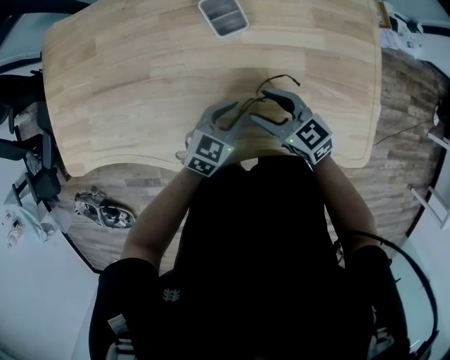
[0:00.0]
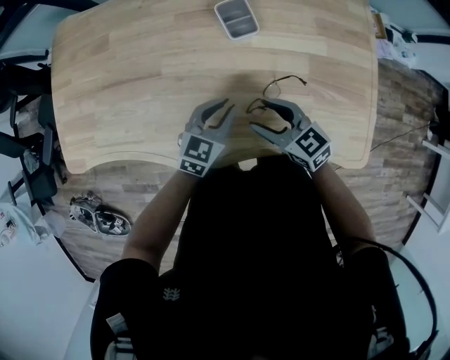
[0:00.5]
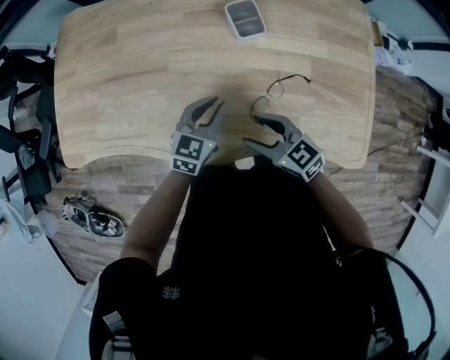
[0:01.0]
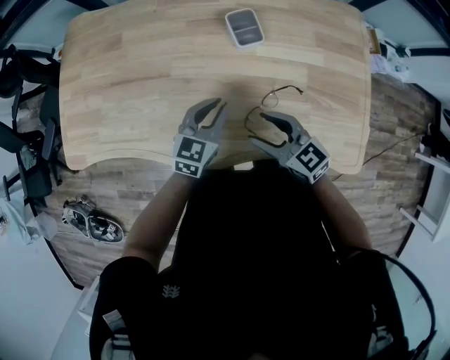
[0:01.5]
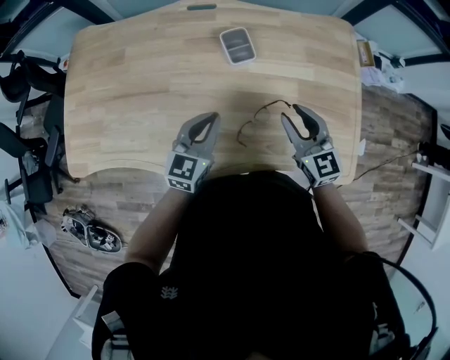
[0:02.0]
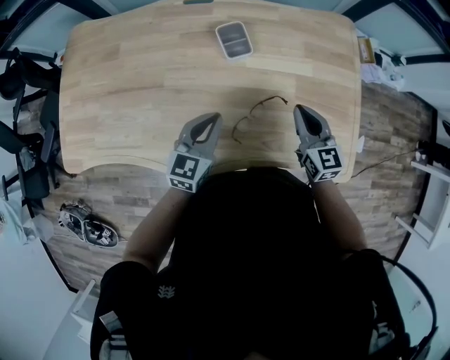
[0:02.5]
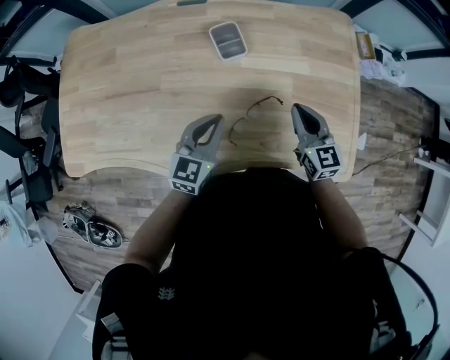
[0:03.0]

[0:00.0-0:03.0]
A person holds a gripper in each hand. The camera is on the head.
0:00.0 to 0:01.5: The right gripper shifts about 10 cm upward, to the left and backward. Meanwhile the left gripper heads to the left and upward, covering approximately 15 cm.
0:01.5 to 0:03.0: The right gripper shifts roughly 20 cm to the right and forward, turns by about 30 degrees, and closes up; the left gripper moves to the right, about 5 cm.

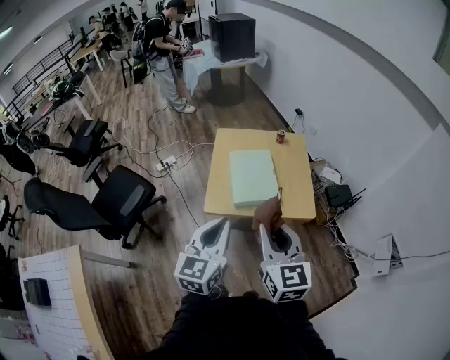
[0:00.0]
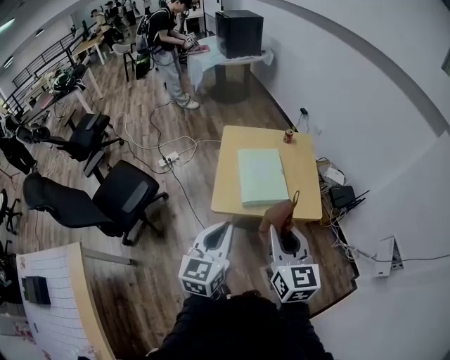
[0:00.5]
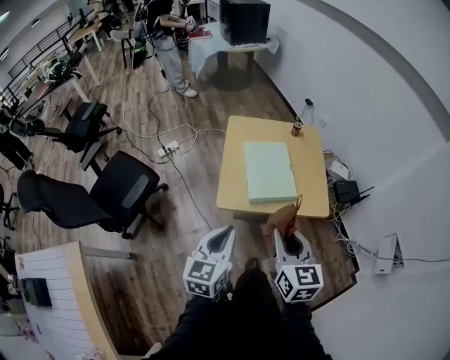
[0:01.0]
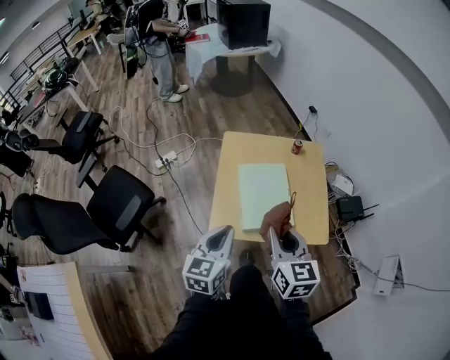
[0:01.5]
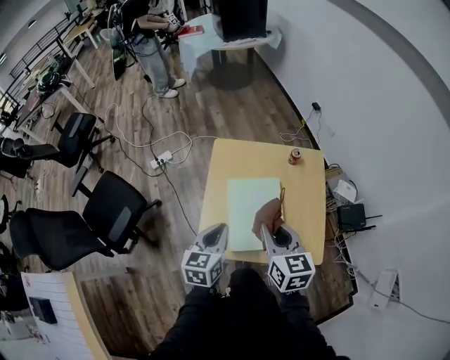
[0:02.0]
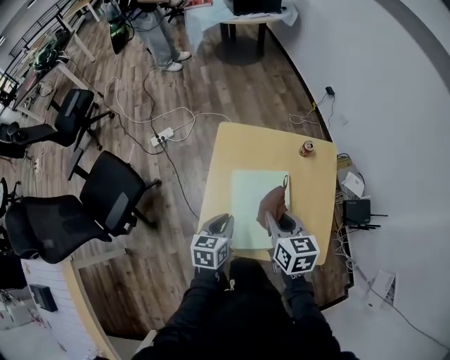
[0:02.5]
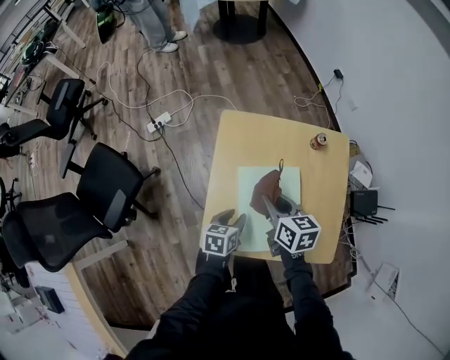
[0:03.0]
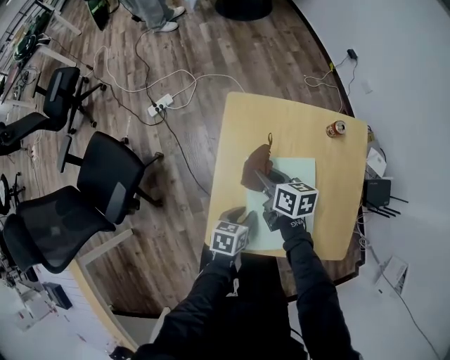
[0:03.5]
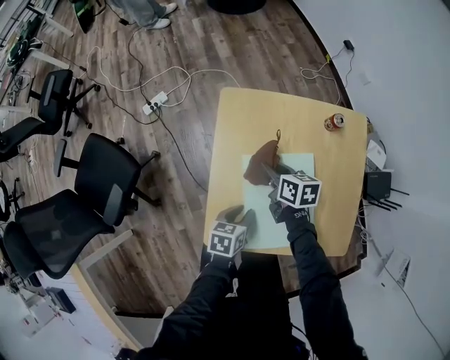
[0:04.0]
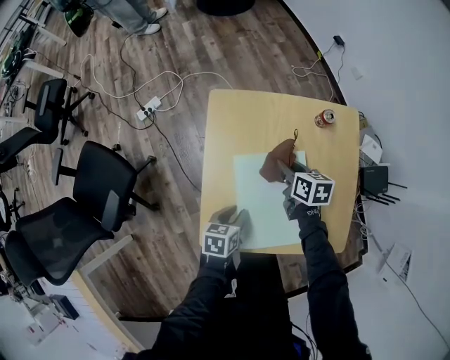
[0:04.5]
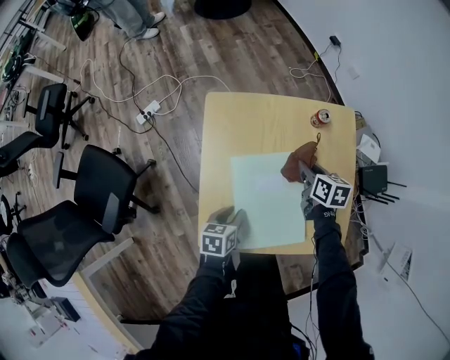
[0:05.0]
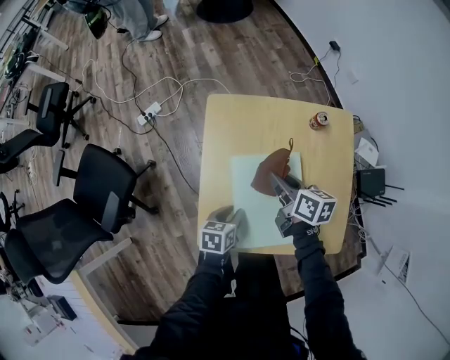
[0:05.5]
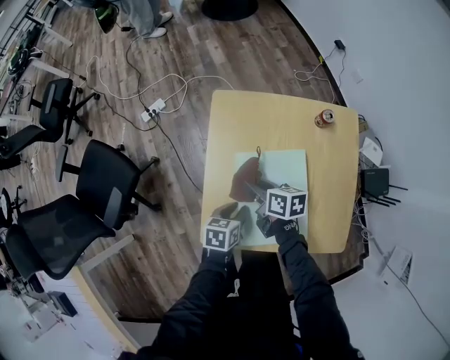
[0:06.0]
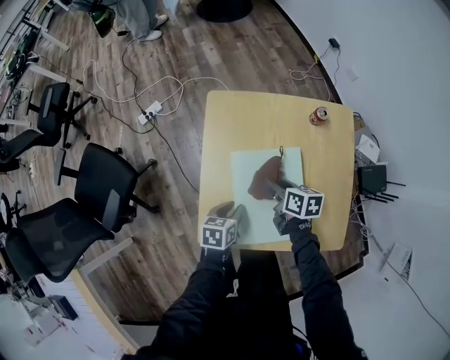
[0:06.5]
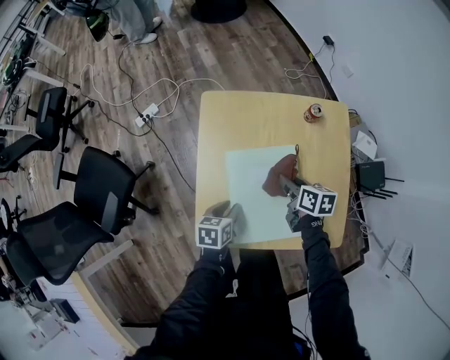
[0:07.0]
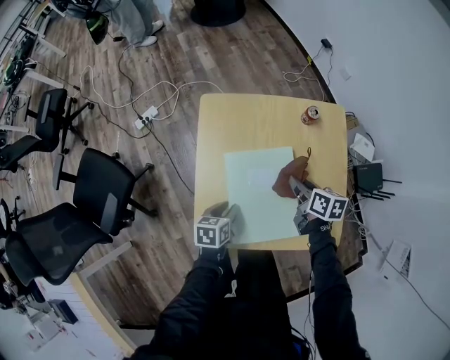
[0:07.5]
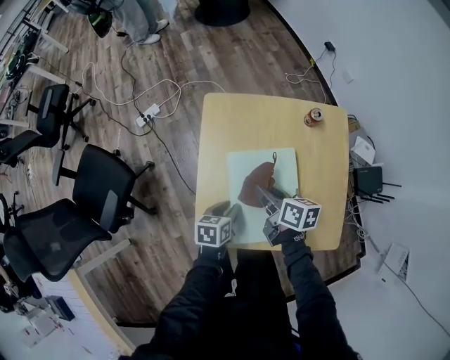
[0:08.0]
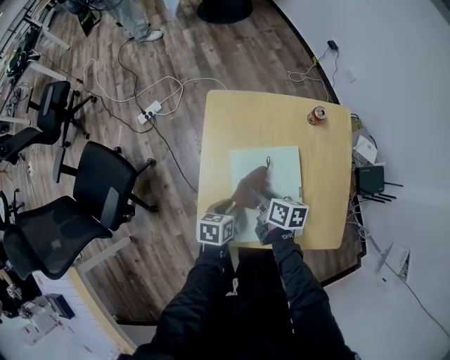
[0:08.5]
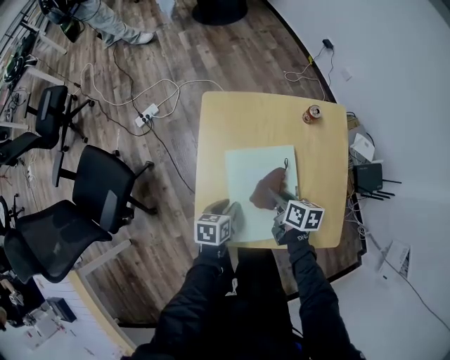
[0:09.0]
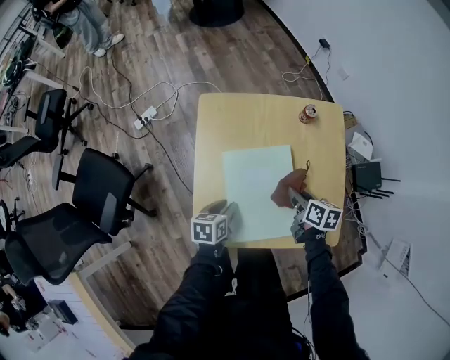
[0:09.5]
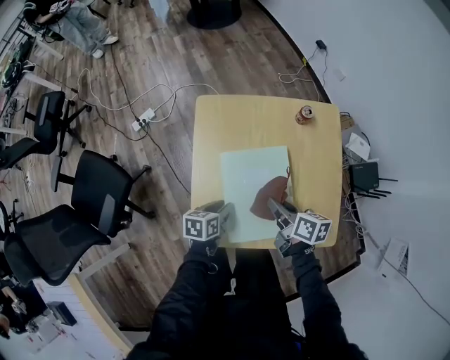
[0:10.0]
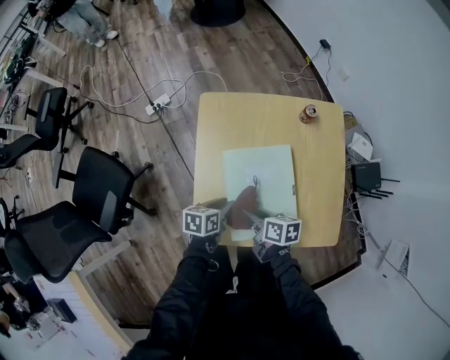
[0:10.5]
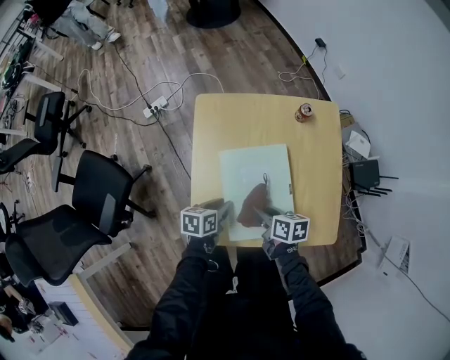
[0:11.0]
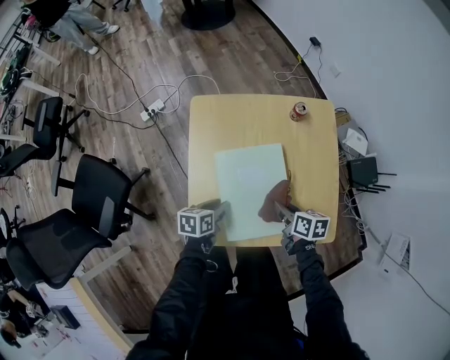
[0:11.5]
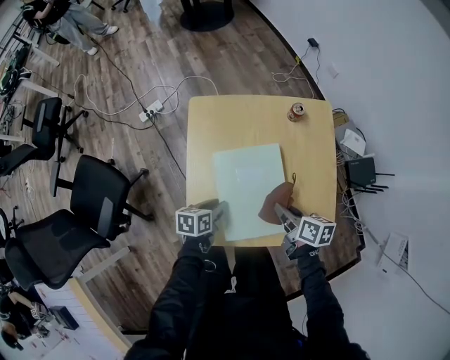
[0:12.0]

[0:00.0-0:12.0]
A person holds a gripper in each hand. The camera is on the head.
0:00.0 to 0:02.0: The two grippers go approximately 35 cm forward and downward. The left gripper rotates approximately 20 degrees.
0:02.0 to 0:04.0: The right gripper shifts roughly 35 cm downward and forward, and rotates about 30 degrees. The left gripper heads downward, covering some 25 cm, changes its angle by some 30 degrees, and opens.
0:04.0 to 0:06.0: The right gripper moves backward, roughly 5 cm, and travels to the right and back again, approximately 15 cm each way.
0:06.0 to 0:08.0: The right gripper reaches some 20 cm to the right, then returns.
0:08.0 to 0:10.0: The right gripper goes roughly 5 cm to the right.
0:10.0 to 0:12.0: The right gripper moves roughly 10 cm to the left and comes back.

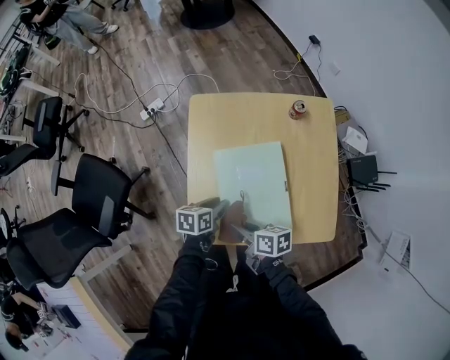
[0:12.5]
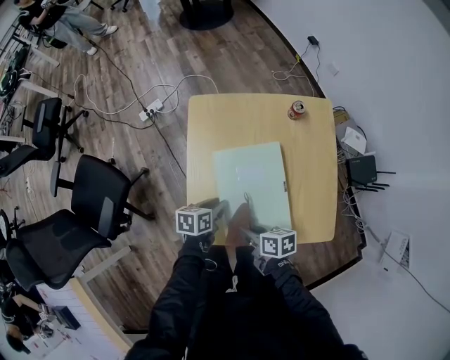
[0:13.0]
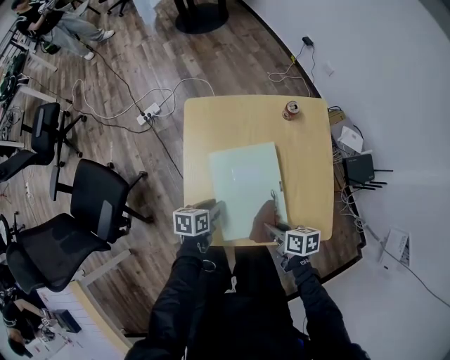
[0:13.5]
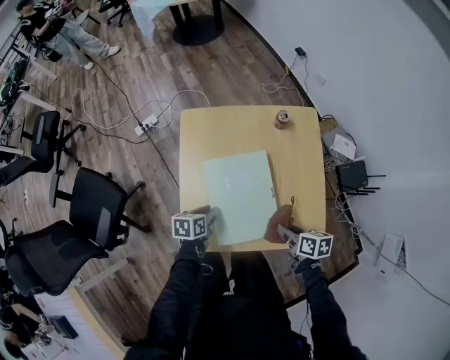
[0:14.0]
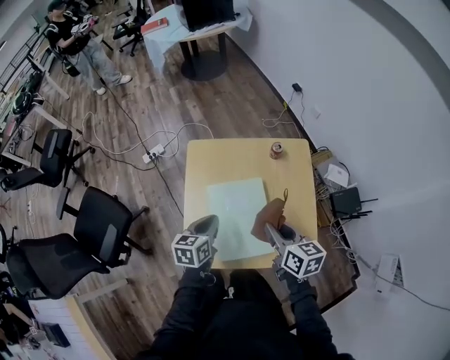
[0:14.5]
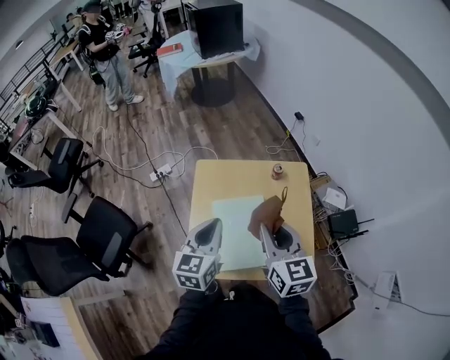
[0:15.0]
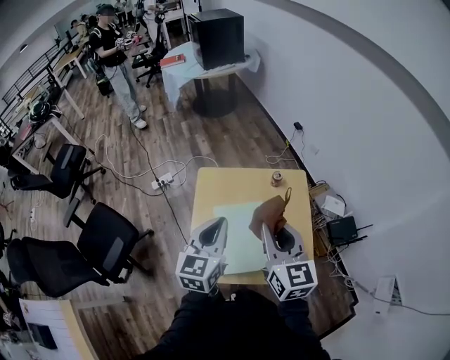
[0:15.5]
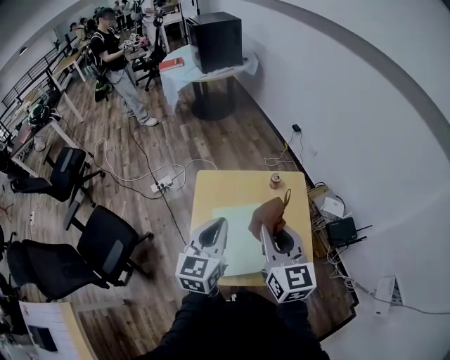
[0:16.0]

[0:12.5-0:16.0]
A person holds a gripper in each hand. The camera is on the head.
0:12.5 to 0:14.5: The right gripper moves upward, to the right and forward, some 25 cm, and swivels roughly 40 degrees, while the left gripper heads upward, covering some 15 cm, and changes its angle by about 20 degrees.
0:14.5 to 0:16.0: Both grippers move upward, about 20 cm. The left gripper rotates roughly 30 degrees, while the right gripper changes its angle by approximately 30 degrees.

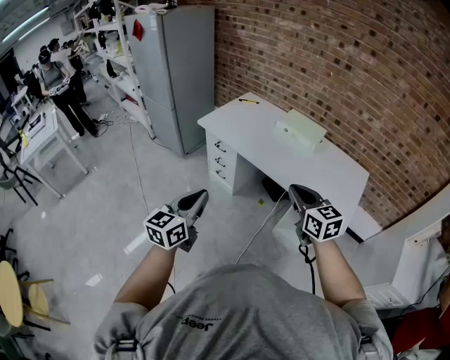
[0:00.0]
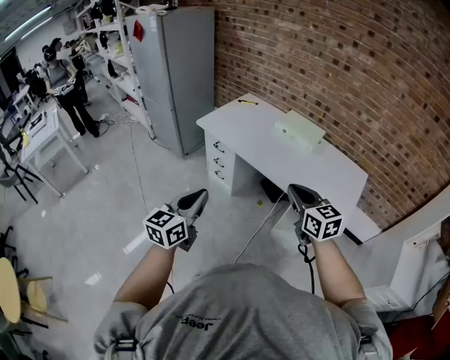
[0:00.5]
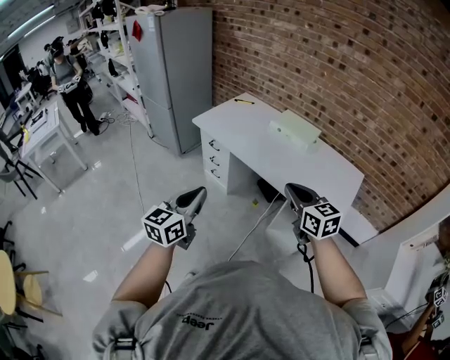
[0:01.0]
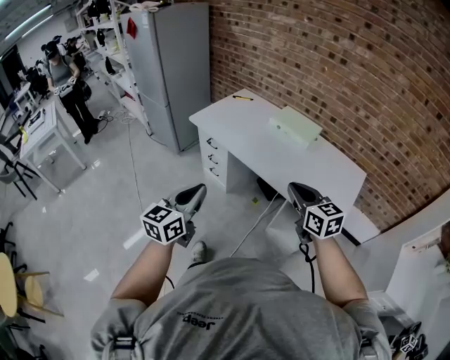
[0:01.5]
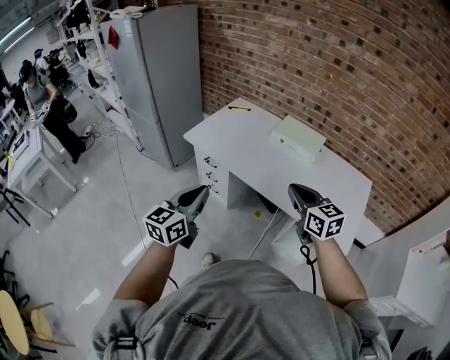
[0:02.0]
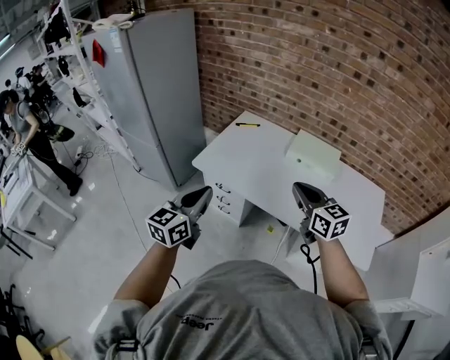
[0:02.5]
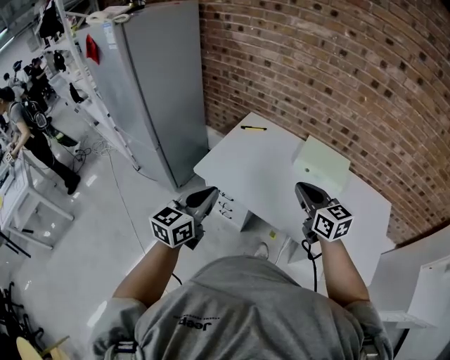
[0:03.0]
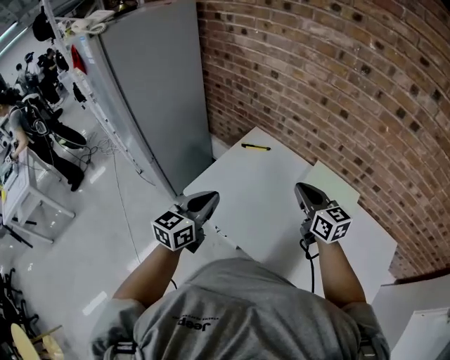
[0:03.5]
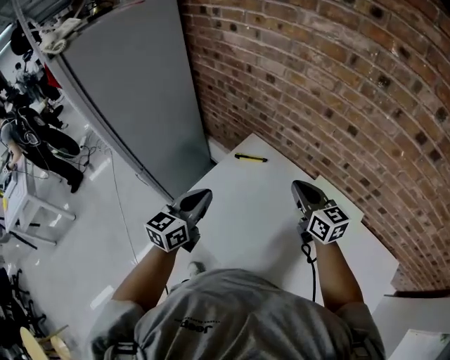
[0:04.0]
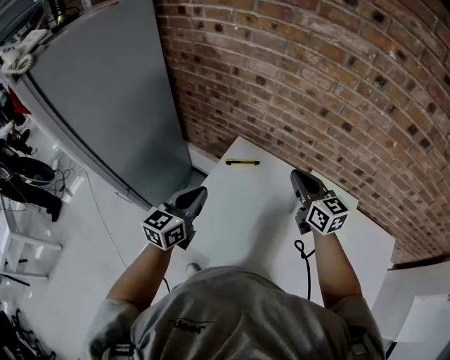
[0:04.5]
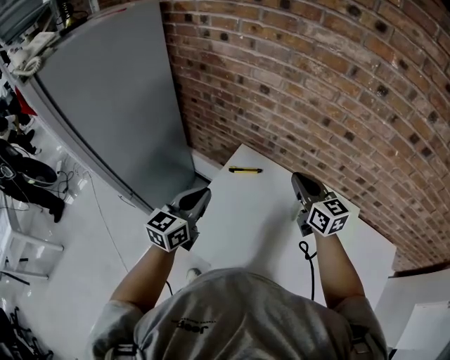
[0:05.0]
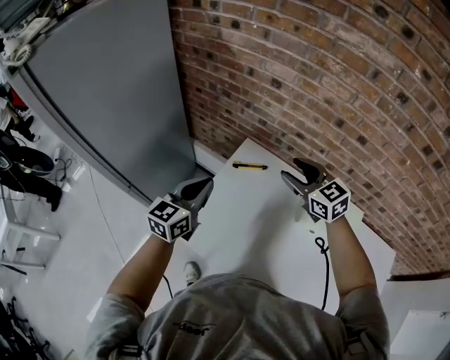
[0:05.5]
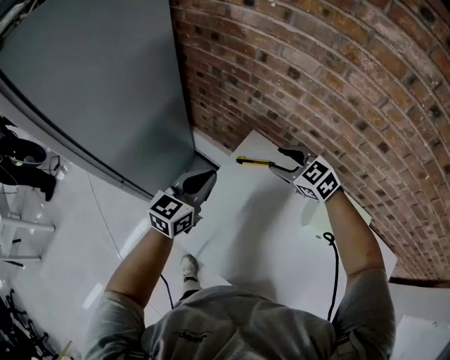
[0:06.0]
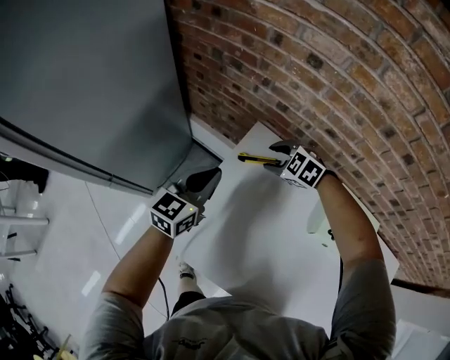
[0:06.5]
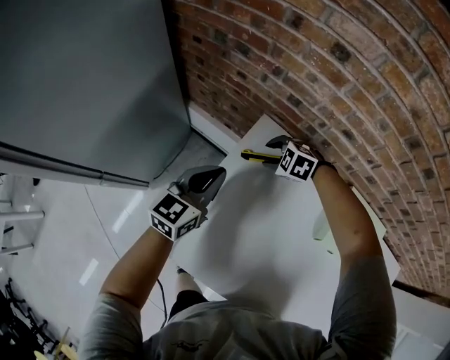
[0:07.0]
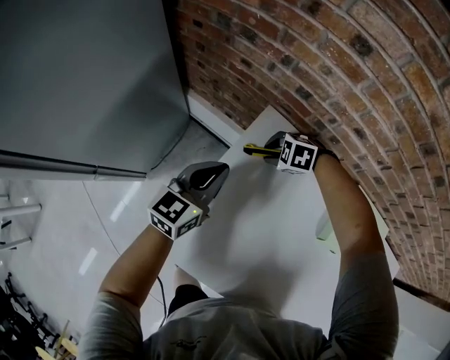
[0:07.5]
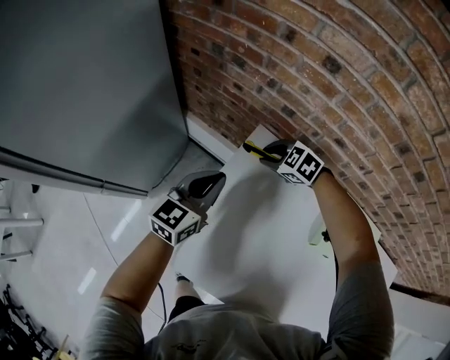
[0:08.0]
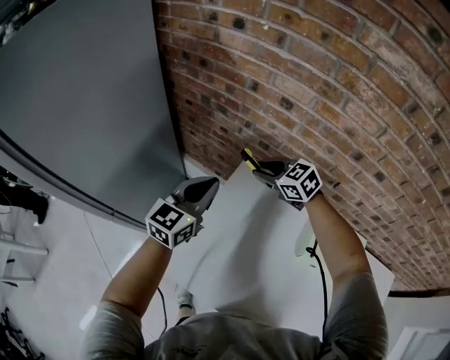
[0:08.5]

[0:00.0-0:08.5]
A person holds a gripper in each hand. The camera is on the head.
0:00.0 to 0:02.0: The two grippers go roughly 15 cm forward.
0:02.0 to 0:04.0: Both grippers are carried forward, approximately 60 cm.
0:04.0 to 0:06.5: The right gripper goes about 35 cm downward, forward and to the left, points its fingers approximately 50 degrees further downward, and opens up; the left gripper travels forward and downward by about 25 cm.
0:06.5 to 0:08.5: Both grippers travel together upward, approximately 10 cm. The right gripper swivels approximately 30 degrees, and closes up.
